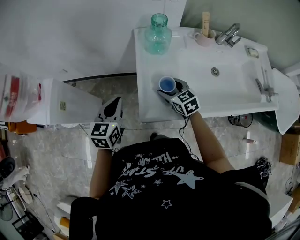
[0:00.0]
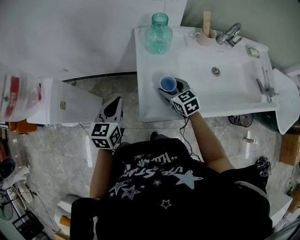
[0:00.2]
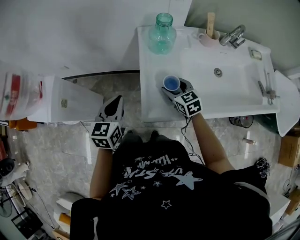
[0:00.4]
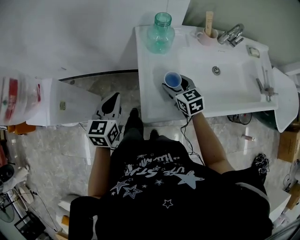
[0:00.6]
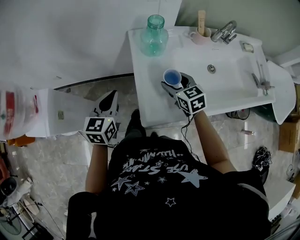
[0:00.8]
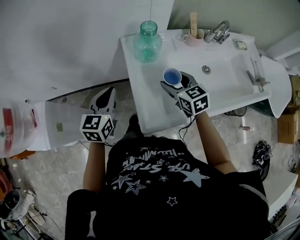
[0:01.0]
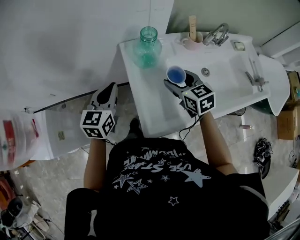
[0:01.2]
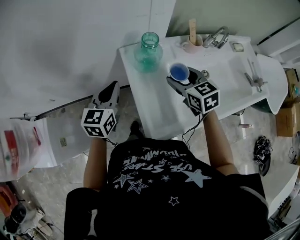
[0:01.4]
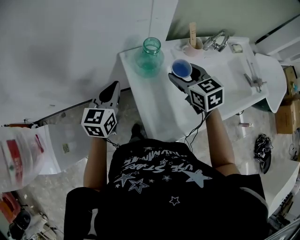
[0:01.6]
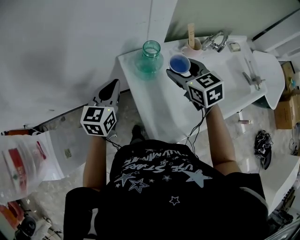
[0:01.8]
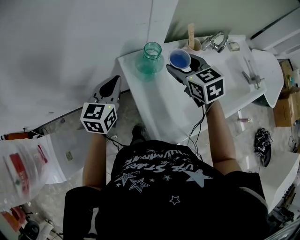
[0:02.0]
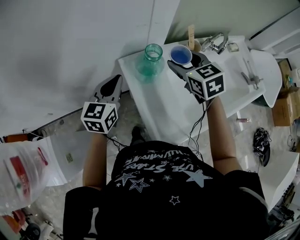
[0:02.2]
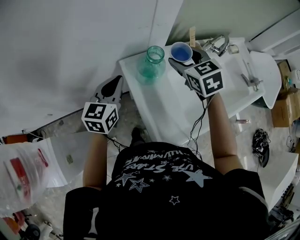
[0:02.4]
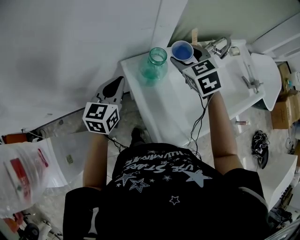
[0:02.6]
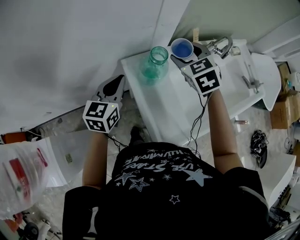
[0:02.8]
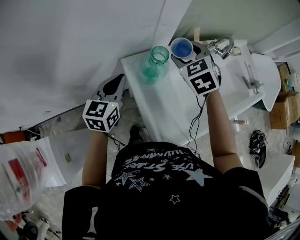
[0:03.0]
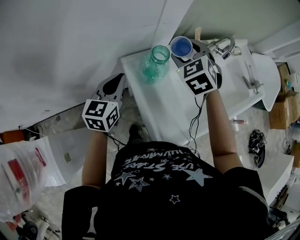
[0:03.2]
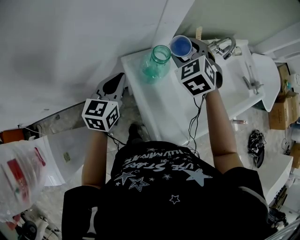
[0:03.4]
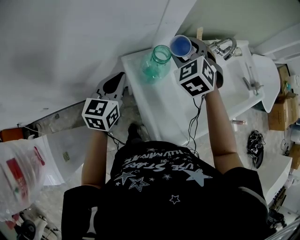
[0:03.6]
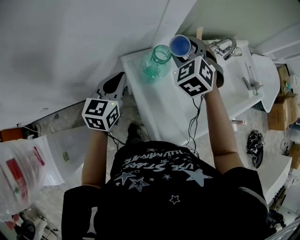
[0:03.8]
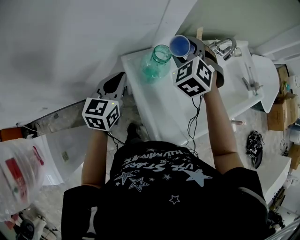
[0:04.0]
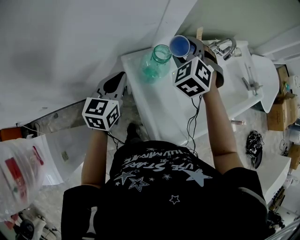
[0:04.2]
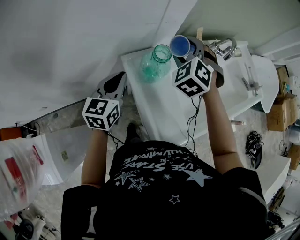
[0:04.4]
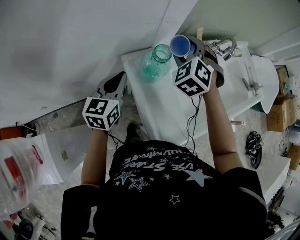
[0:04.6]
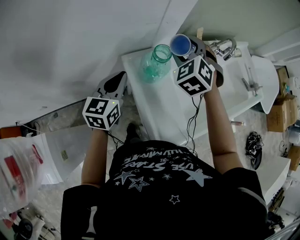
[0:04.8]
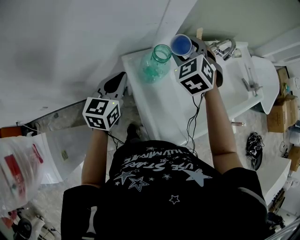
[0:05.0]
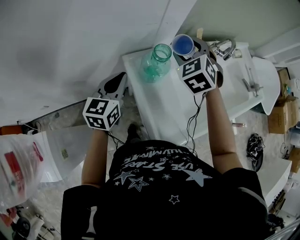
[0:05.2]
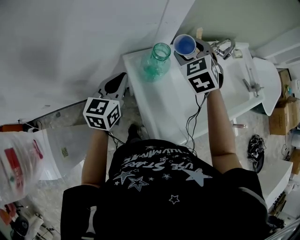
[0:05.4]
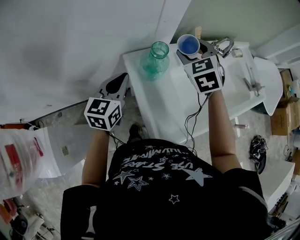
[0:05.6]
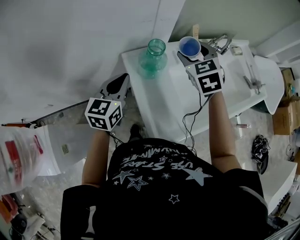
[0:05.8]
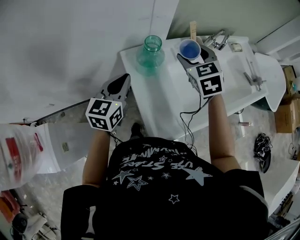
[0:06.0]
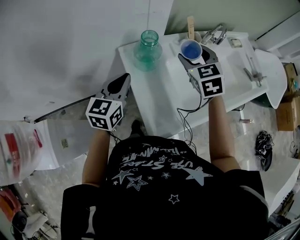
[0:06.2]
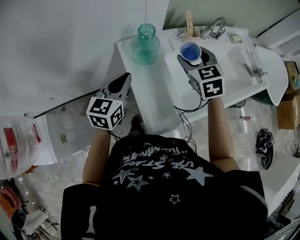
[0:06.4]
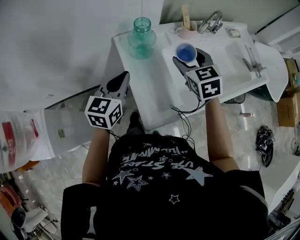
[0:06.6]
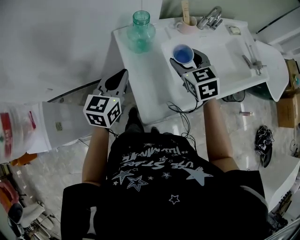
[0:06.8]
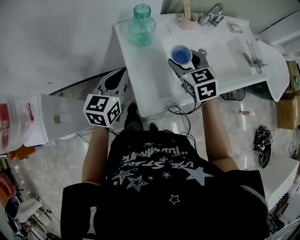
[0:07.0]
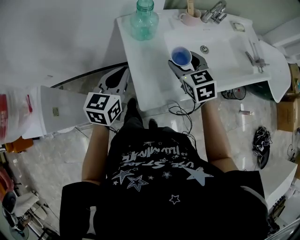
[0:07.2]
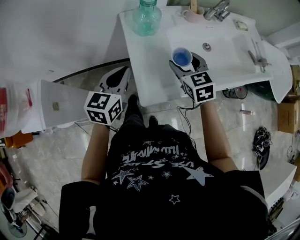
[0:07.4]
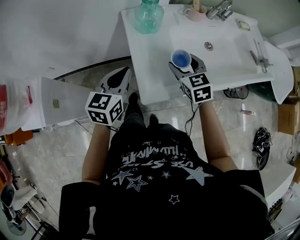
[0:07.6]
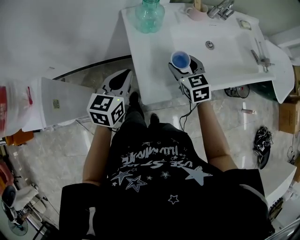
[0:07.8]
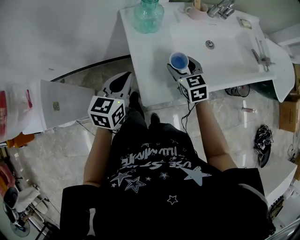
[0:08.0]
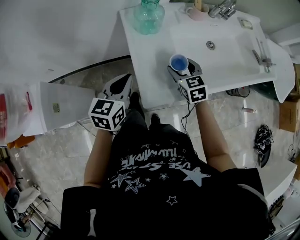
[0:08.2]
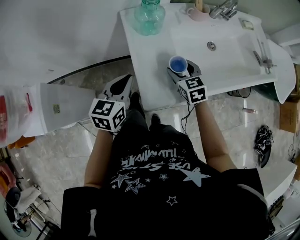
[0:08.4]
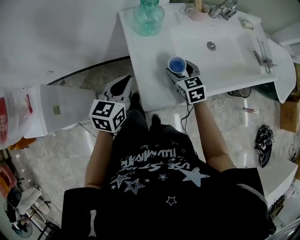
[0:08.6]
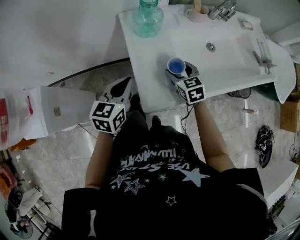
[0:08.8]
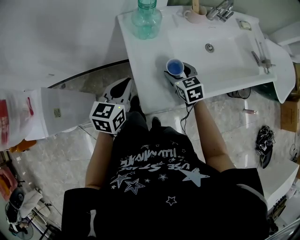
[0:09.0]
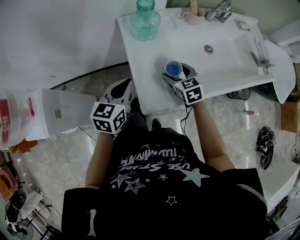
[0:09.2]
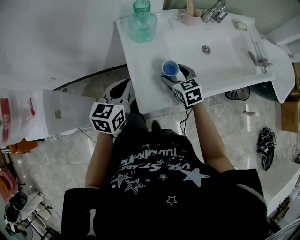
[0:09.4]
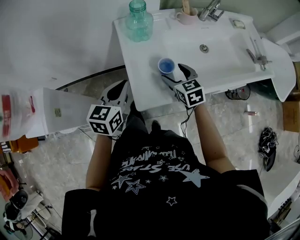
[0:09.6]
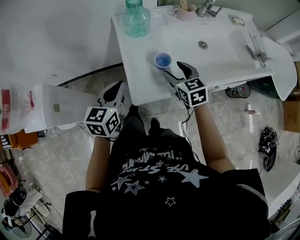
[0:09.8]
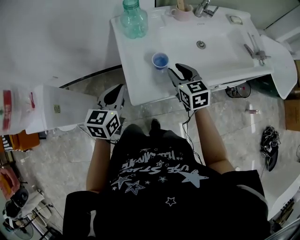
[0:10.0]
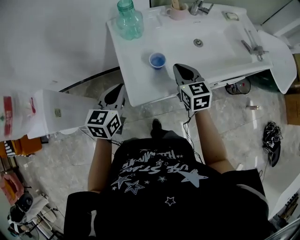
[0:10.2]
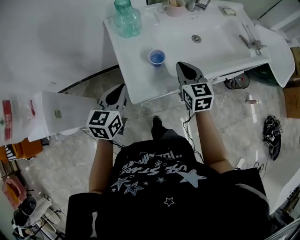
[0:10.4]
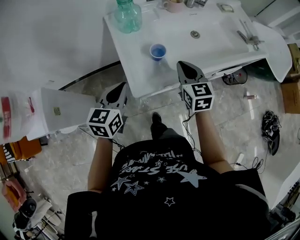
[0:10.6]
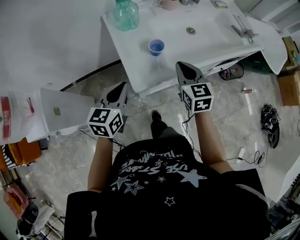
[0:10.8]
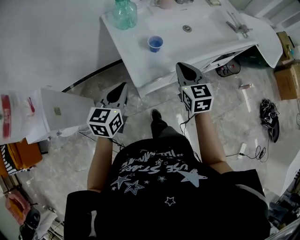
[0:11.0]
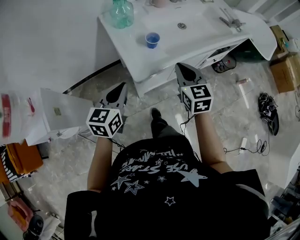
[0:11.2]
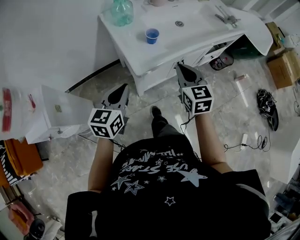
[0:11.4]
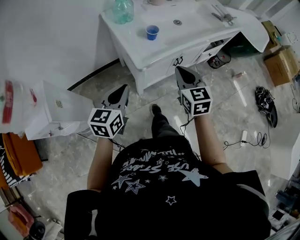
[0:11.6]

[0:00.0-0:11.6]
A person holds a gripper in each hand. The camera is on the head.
0:00.0 to 0:01.4: The left gripper is displaced forward by approximately 20 cm, while the right gripper goes about 20 cm upward, forward and to the right.
0:01.4 to 0:02.8: The right gripper moves forward and upward, some 15 cm, and swivels about 30 degrees; the left gripper heads forward, covering roughly 10 cm.
0:02.8 to 0:04.4: The right gripper swivels roughly 30 degrees.
0:04.4 to 0:05.8: The left gripper moves some 5 cm. The right gripper goes some 5 cm to the right, and changes its angle by some 30 degrees.
0:05.8 to 0:07.2: The left gripper moves backward and to the right, about 15 cm. The right gripper travels backward and downward by roughly 20 cm.
0:07.2 to 0:08.8: The left gripper travels downward by some 5 cm. Meanwhile the right gripper moves downward, approximately 15 cm.
0:08.8 to 0:10.2: The right gripper moves upward, to the right and backward, approximately 15 cm, and closes its fingers, while the left gripper moves backward, approximately 5 cm.
0:10.2 to 0:11.6: Both grippers move backward, some 20 cm.

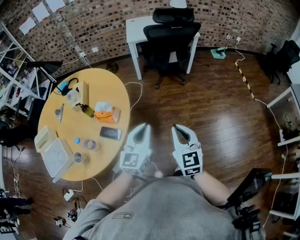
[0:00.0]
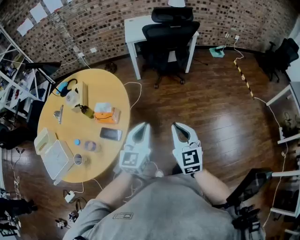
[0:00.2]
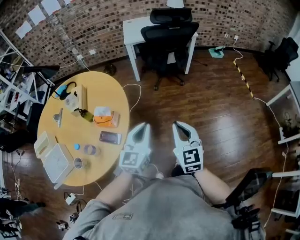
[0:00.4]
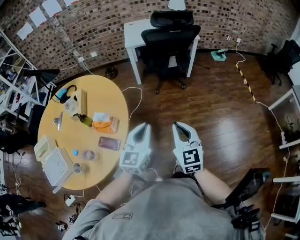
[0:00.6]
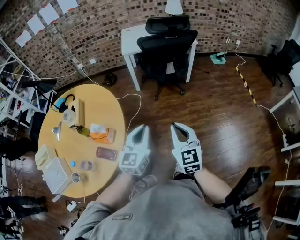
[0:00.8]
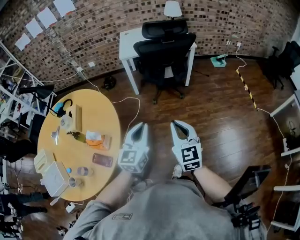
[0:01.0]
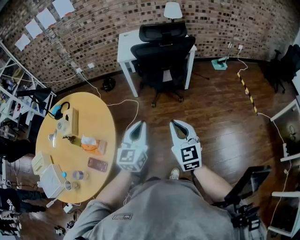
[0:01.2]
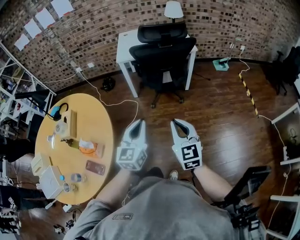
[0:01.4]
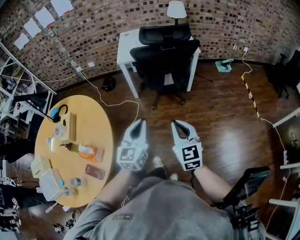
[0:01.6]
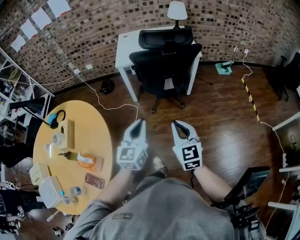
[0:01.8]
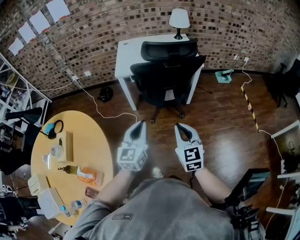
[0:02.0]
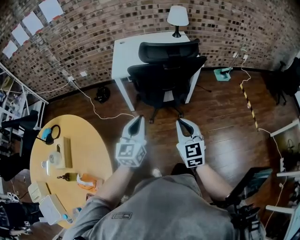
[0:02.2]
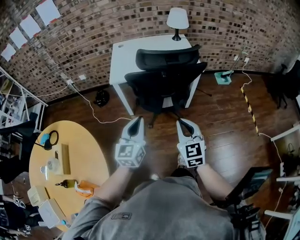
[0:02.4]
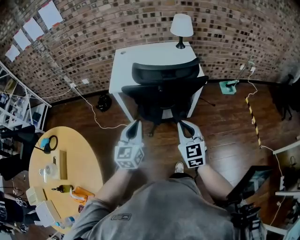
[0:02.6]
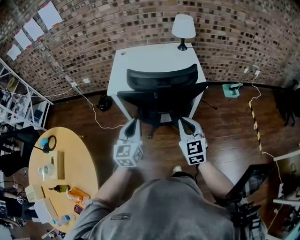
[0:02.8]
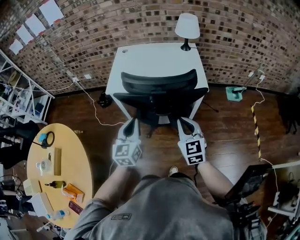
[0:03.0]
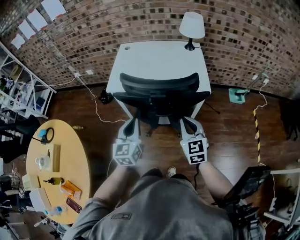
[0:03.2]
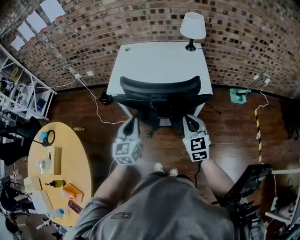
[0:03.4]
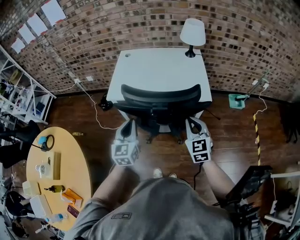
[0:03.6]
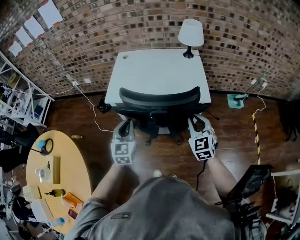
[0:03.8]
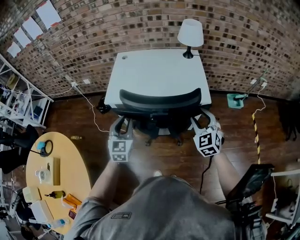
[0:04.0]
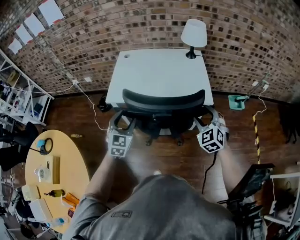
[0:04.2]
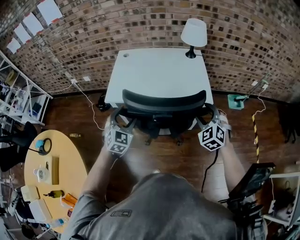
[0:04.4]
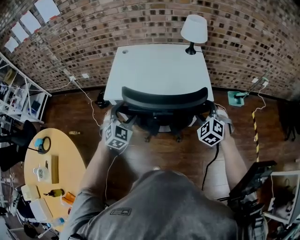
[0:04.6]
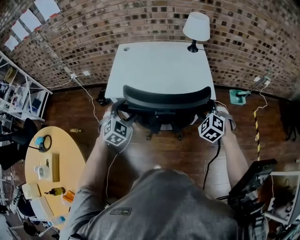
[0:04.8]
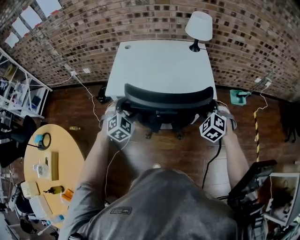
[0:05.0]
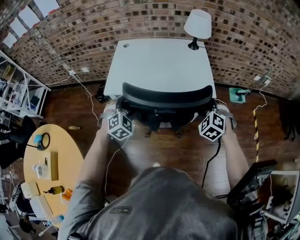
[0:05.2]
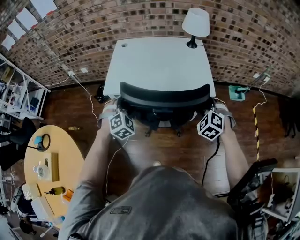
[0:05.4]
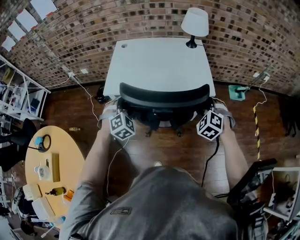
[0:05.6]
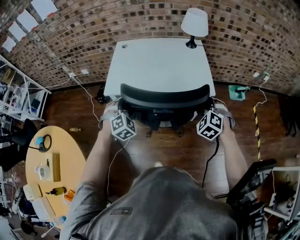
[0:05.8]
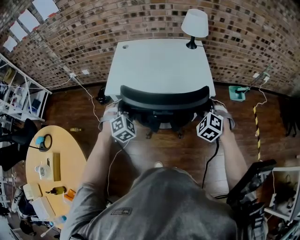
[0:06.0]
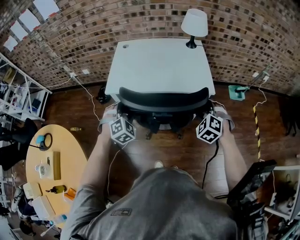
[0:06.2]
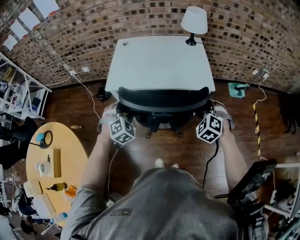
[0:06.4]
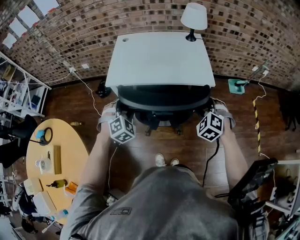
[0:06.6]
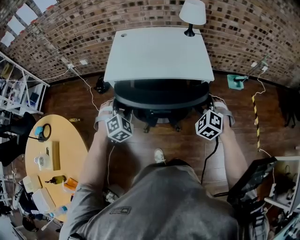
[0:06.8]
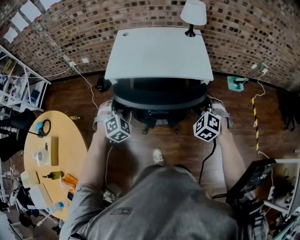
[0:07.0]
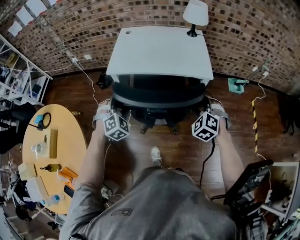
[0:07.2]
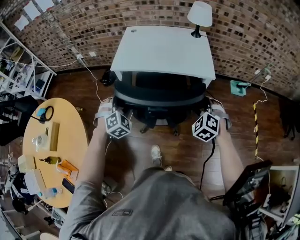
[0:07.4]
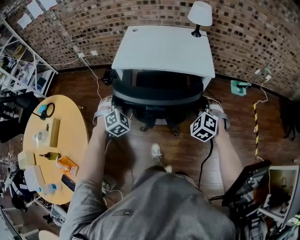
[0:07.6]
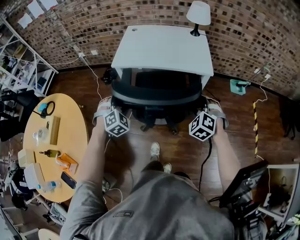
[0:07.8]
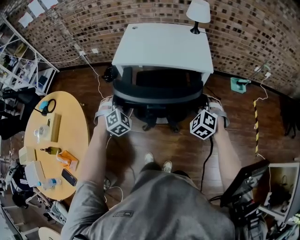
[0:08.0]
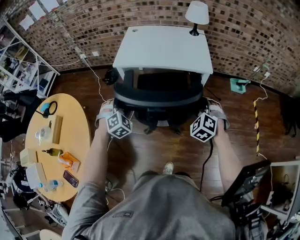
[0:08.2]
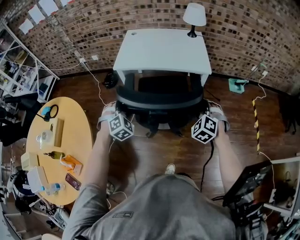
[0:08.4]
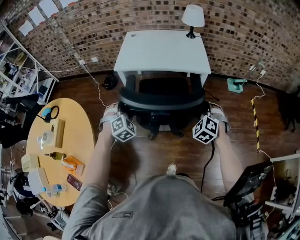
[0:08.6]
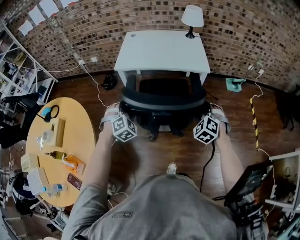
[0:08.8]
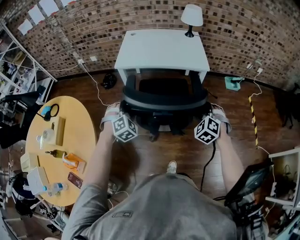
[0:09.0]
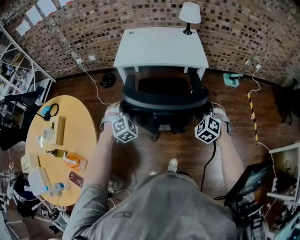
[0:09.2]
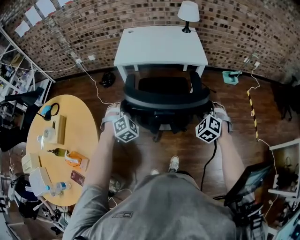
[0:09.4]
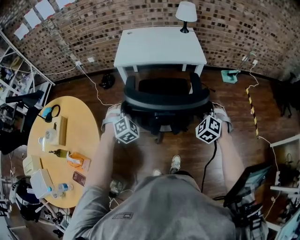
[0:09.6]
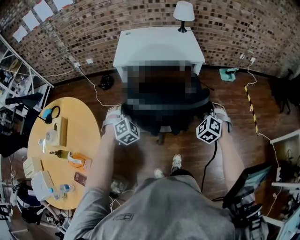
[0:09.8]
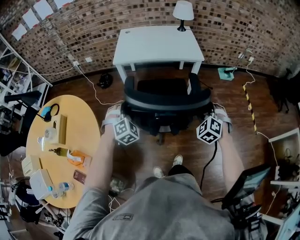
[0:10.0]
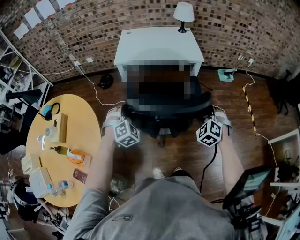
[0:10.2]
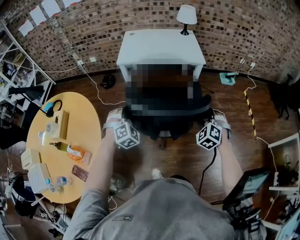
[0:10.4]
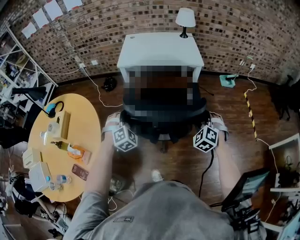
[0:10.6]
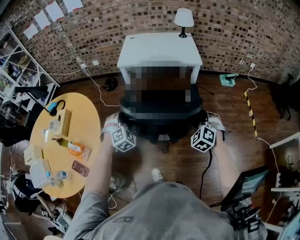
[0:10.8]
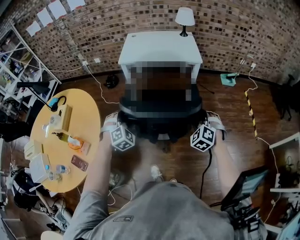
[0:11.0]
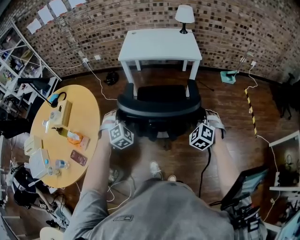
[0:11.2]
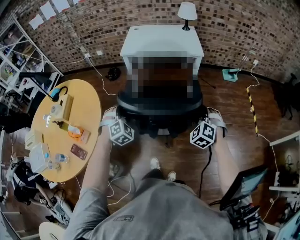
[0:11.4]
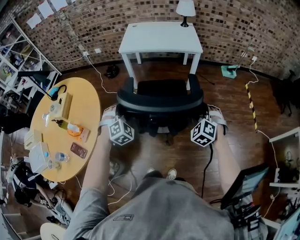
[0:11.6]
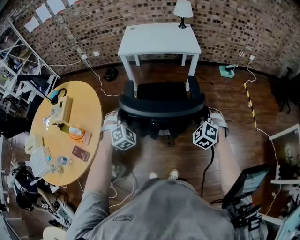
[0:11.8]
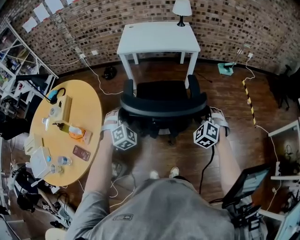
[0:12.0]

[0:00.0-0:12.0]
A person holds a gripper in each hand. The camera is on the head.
0:00.0 to 0:01.6: Both grippers travel together forward and to the right, approximately 30 cm.
0:01.6 to 0:03.0: The two grippers go approximately 40 cm forward.
0:03.0 to 0:04.4: The right gripper travels forward and to the right by approximately 15 cm, swivels some 40 degrees, and opens up, while the left gripper travels forward by approximately 15 cm, rolls clockwise, seen from behind, by some 40 degrees, and opens up.
0:04.4 to 0:06.0: The left gripper swivels some 30 degrees.
0:06.0 to 0:07.6: The grippers both shift backward by roughly 15 cm.
0:07.6 to 0:09.0: The two grippers go approximately 10 cm backward.
0:09.0 to 0:10.4: The grippers both shift backward by approximately 10 cm.
0:10.4 to 0:12.0: The two grippers go approximately 15 cm backward.
